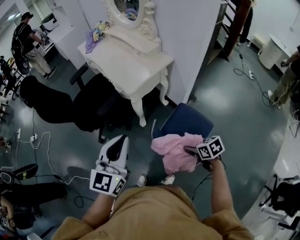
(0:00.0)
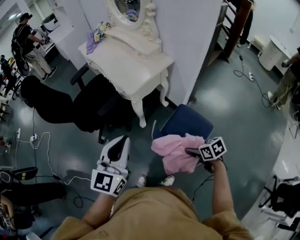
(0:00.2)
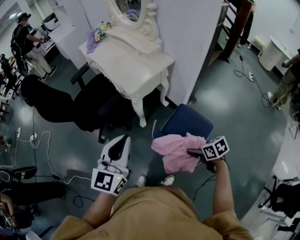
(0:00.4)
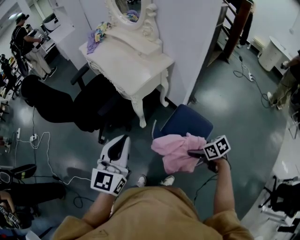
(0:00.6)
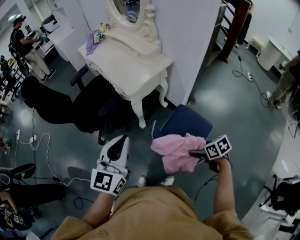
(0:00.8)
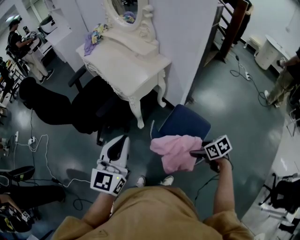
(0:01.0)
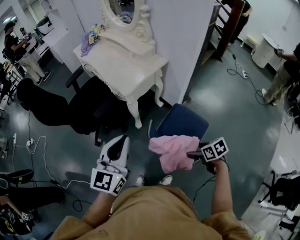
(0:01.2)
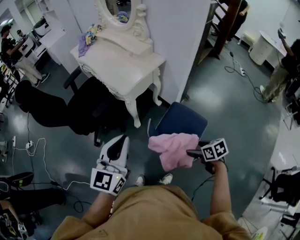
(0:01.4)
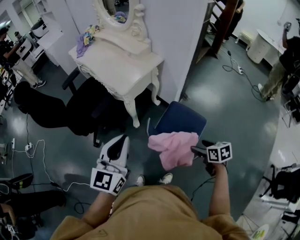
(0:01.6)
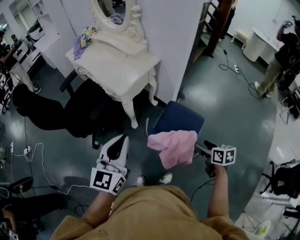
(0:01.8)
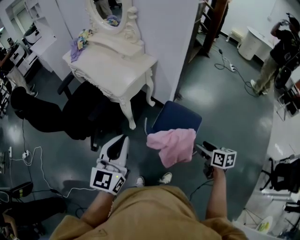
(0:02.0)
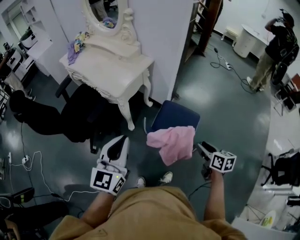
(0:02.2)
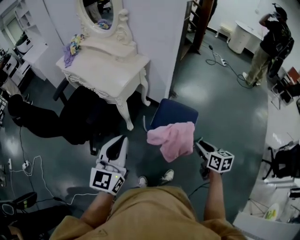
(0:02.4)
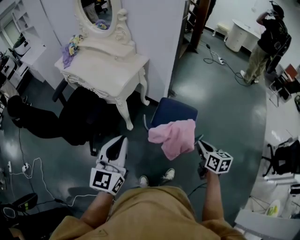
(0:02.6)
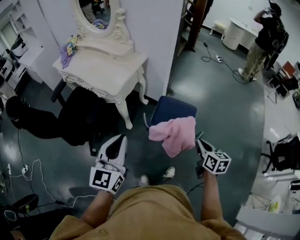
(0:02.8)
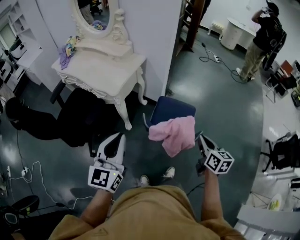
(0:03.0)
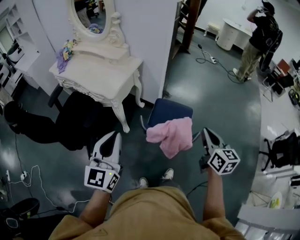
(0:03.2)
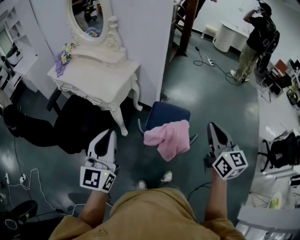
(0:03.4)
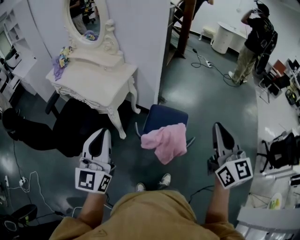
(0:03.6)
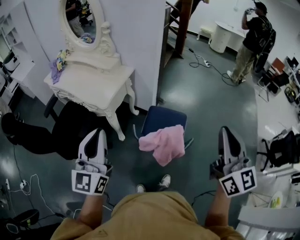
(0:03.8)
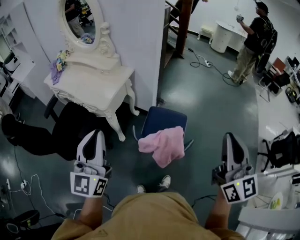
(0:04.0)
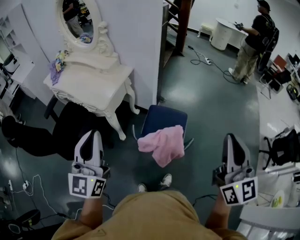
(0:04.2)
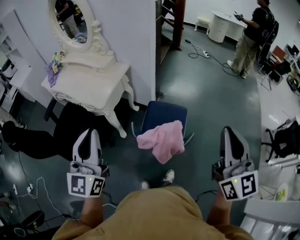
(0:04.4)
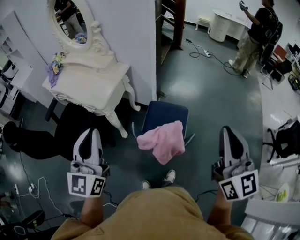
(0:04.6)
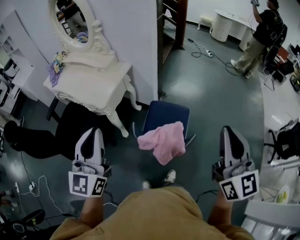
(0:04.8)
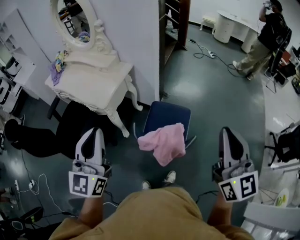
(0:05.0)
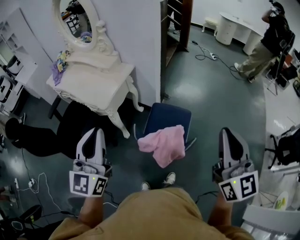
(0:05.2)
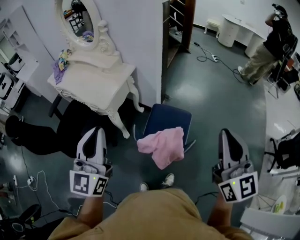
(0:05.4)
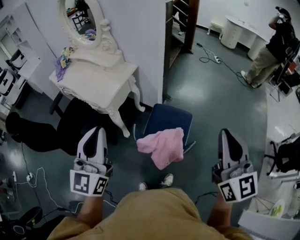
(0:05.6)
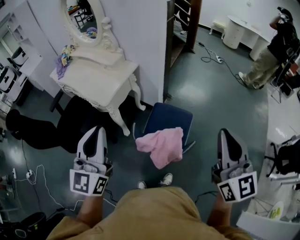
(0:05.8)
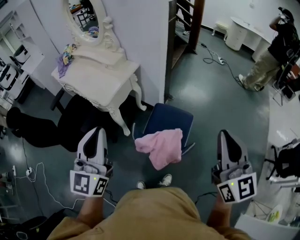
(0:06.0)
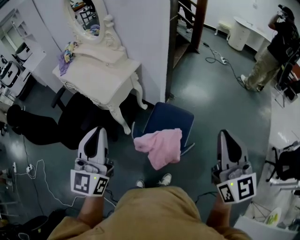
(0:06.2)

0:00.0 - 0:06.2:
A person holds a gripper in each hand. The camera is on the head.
0:00.0 - 0:01.6: The right gripper is displaced backward by about 5 cm, and turns by some 20 degrees.
0:01.6 - 0:03.2: The left gripper shifts by approximately 5 cm, while the right gripper goes roughly 15 cm upward, angles its fingers upward, by about 30 degrees, and closes up.
0:03.2 - 0:04.6: The right gripper moves upward, approximately 20 cm, and swivels some 30 degrees. Meanwhile the left gripper is displaced upward by approximately 10 cm.
0:04.6 - 0:06.2: The left gripper shifts about 5 cm to the right. The right gripper travels forward by some 5 cm.

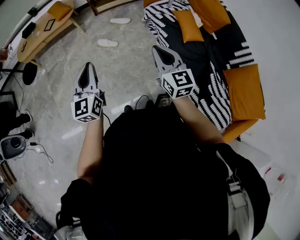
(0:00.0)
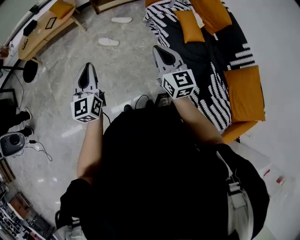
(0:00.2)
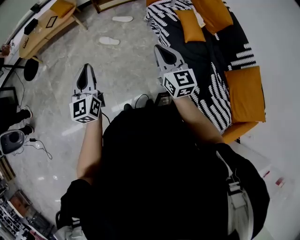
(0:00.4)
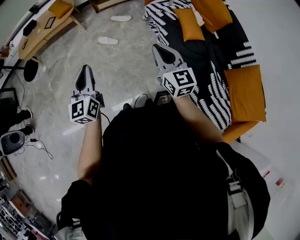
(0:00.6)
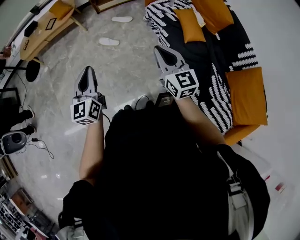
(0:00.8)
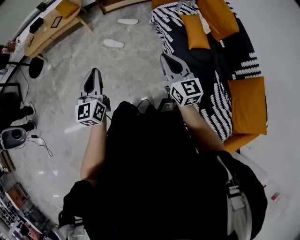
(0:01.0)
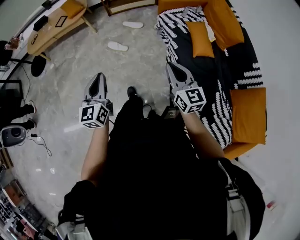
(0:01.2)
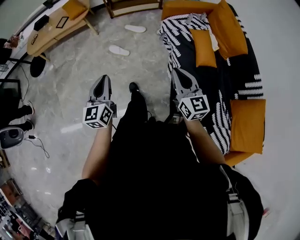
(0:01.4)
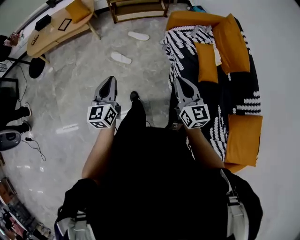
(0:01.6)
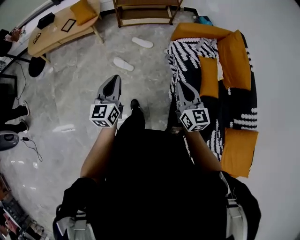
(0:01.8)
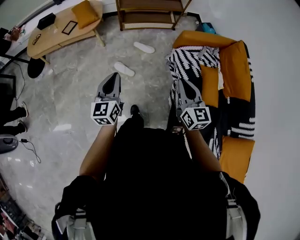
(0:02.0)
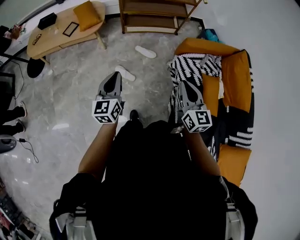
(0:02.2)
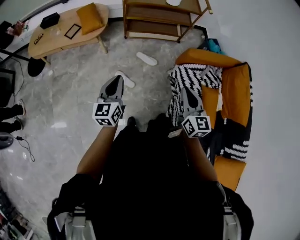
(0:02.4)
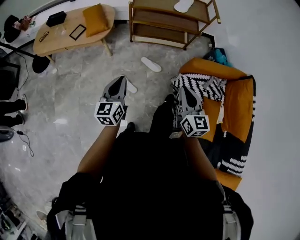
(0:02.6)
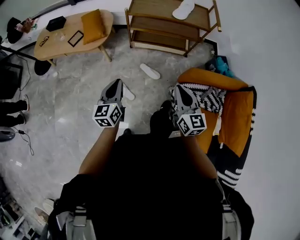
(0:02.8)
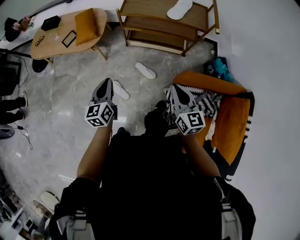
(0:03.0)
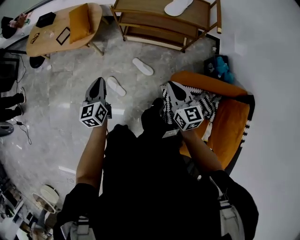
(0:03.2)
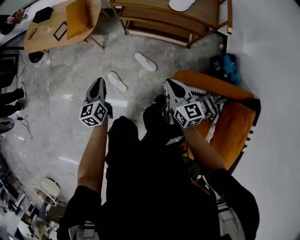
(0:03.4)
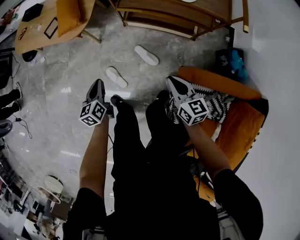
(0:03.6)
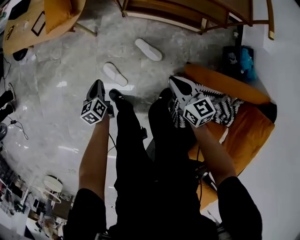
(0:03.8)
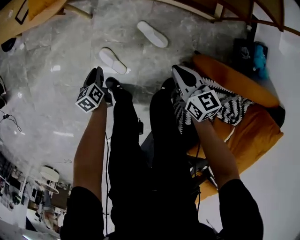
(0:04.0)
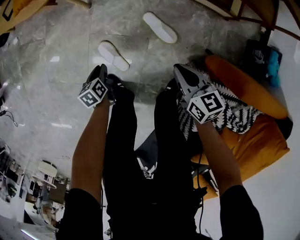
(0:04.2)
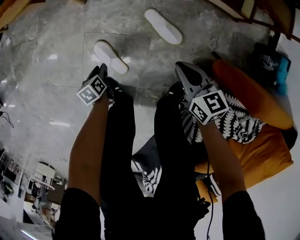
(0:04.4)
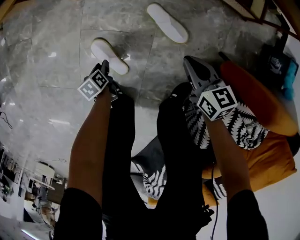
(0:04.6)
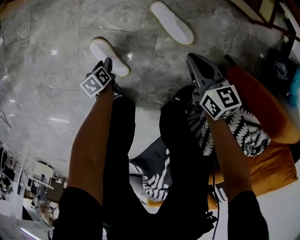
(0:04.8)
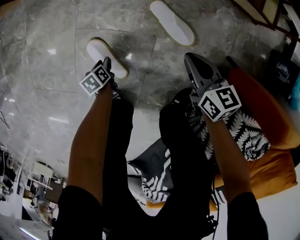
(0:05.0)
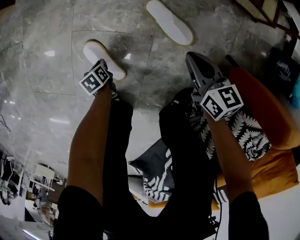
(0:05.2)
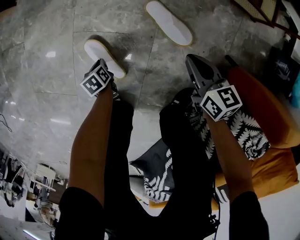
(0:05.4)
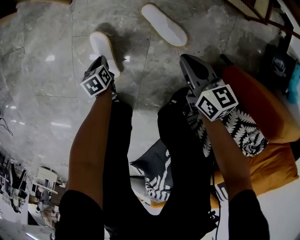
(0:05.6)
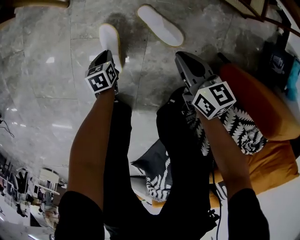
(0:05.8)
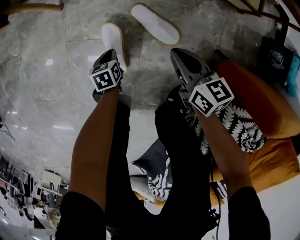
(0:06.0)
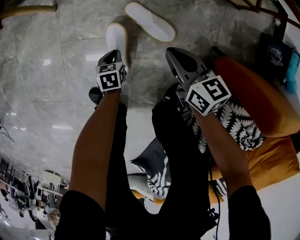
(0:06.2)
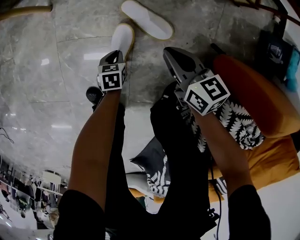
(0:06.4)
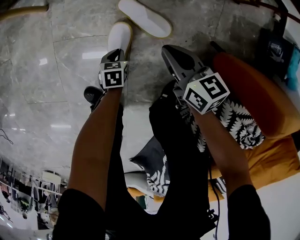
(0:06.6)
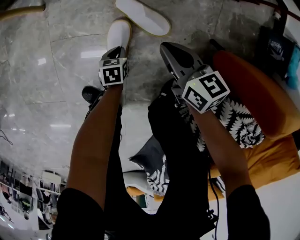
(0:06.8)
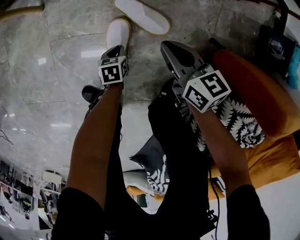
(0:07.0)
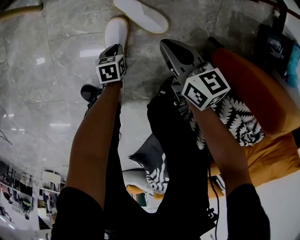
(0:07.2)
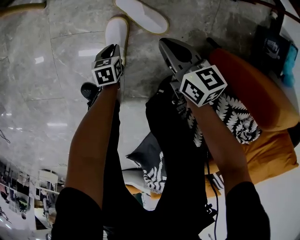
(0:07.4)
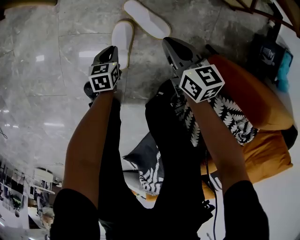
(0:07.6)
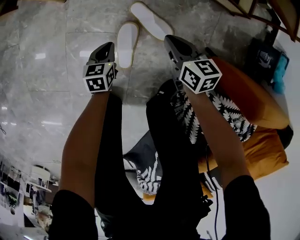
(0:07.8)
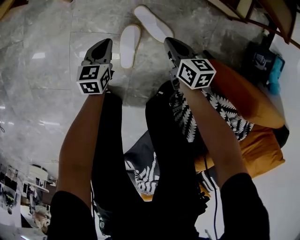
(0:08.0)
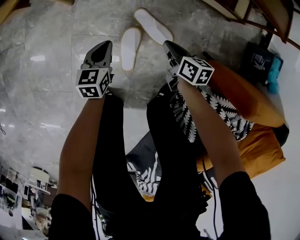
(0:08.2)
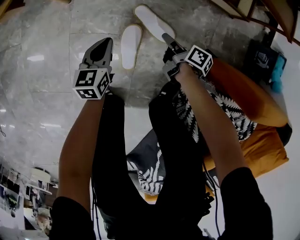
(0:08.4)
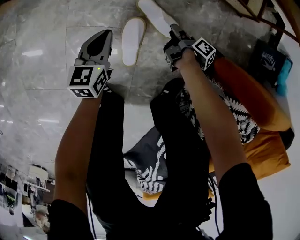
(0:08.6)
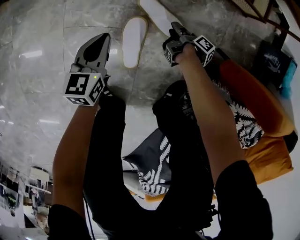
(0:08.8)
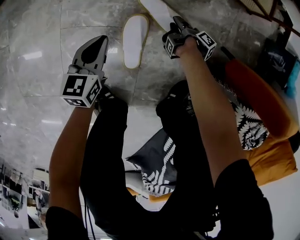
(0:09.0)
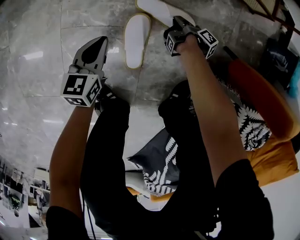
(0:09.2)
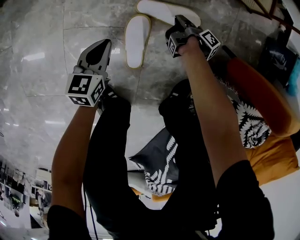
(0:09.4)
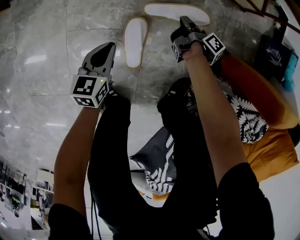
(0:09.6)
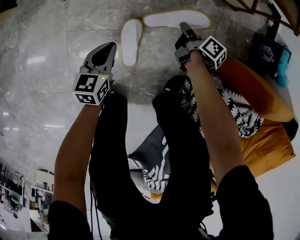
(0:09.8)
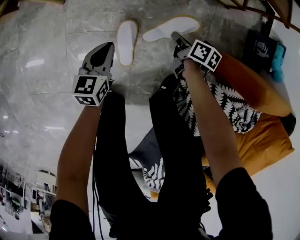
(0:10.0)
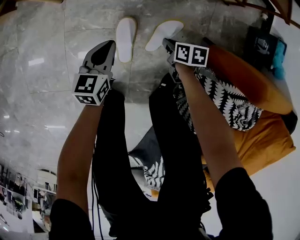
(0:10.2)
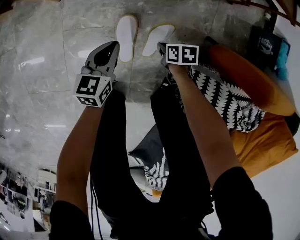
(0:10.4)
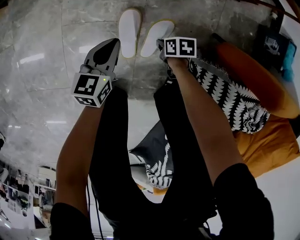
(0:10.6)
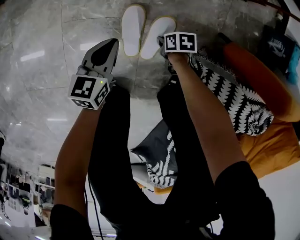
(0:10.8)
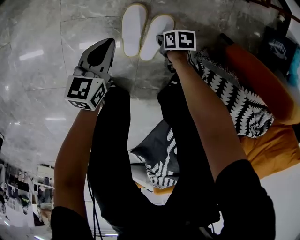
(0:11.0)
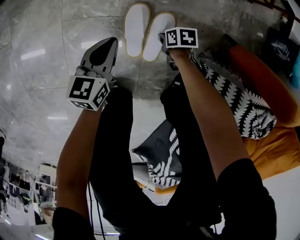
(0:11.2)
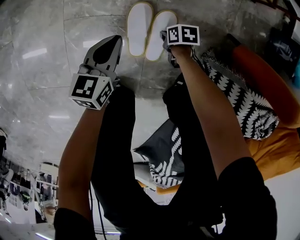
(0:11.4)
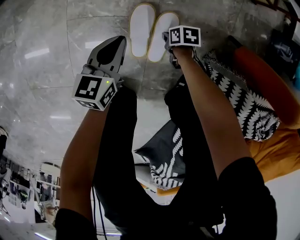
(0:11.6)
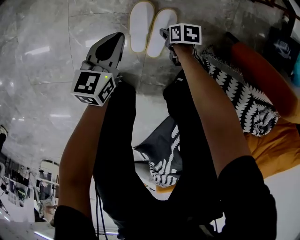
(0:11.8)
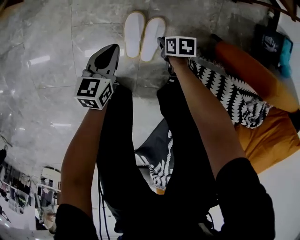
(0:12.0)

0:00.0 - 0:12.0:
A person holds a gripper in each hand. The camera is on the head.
0:00.0 - 0:01.6: The grippers both shift forward and downward by some 15 cm.
0:01.6 - 0:03.0: The pair of grippers is taken forward, about 50 cm. The left gripper turns by approximately 20 degrees.
0:03.0 - 0:04.4: Both grippers move downward, about 60 cm. The right gripper turns by about 40 degrees; the left gripper tilts its fingers about 50 degrees downward, and opens up.
0:04.4 - 0:06.0: The right gripper travels downward by about 10 cm. The left gripper shifts by approximately 15 cm, rotates approximately 20 degrees, and closes up.
0:07.6 - 0:09.0: The right gripper heads downward, covering approximately 25 cm, twists roughly 90 degrees clockwise, seen from behind, and opens up. The left gripper shifts about 10 cm upward, to the left and forward, and rotates some 30 degrees.
0:09.0 - 0:10.4: The left gripper heads upward, covering about 10 cm. The right gripper ends up about 15 cm from where it was, twists some 70 degrees counterclockwise, seen from behind, and closes.
0:10.4 - 0:12.0: The right gripper reaches about 10 cm downward, then returns.

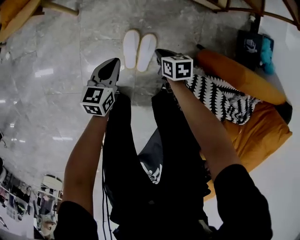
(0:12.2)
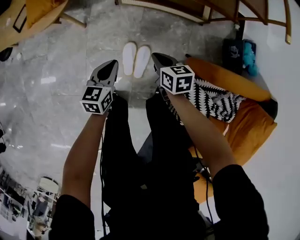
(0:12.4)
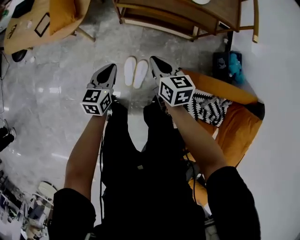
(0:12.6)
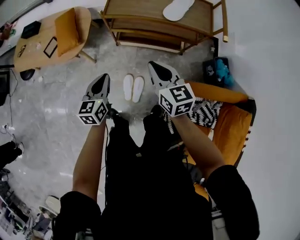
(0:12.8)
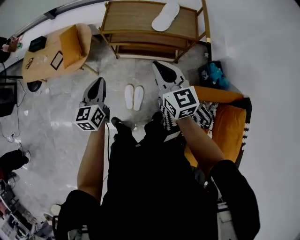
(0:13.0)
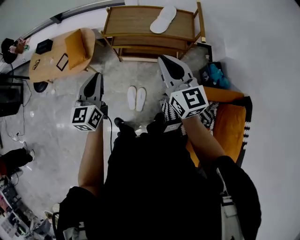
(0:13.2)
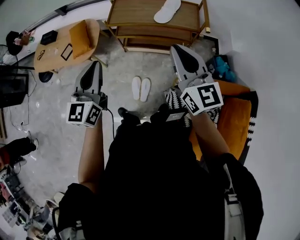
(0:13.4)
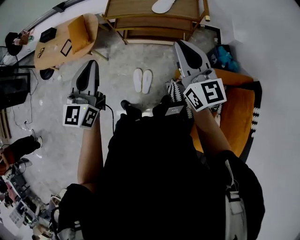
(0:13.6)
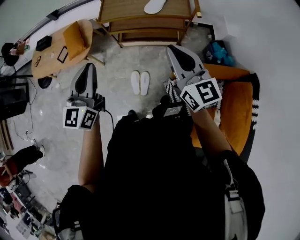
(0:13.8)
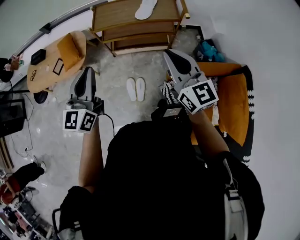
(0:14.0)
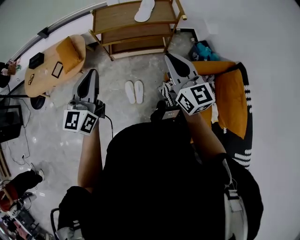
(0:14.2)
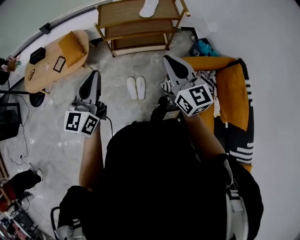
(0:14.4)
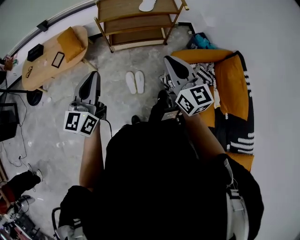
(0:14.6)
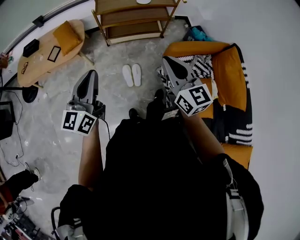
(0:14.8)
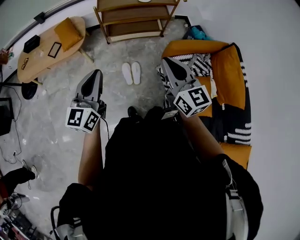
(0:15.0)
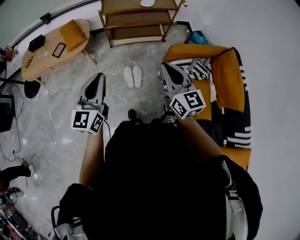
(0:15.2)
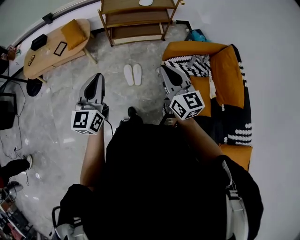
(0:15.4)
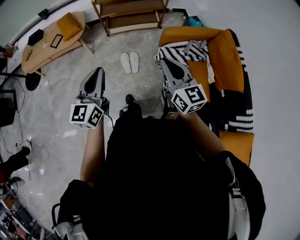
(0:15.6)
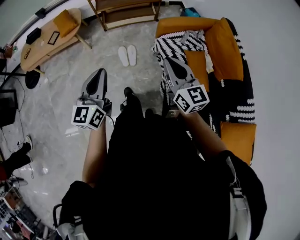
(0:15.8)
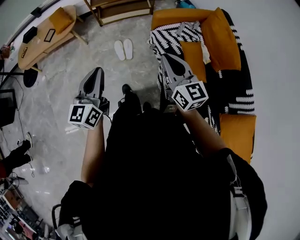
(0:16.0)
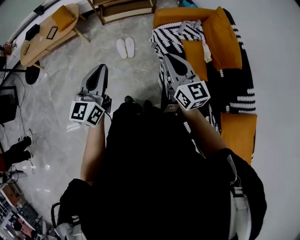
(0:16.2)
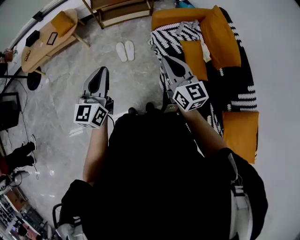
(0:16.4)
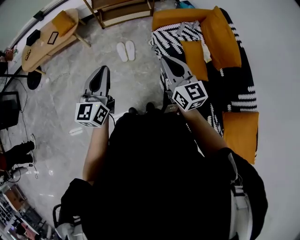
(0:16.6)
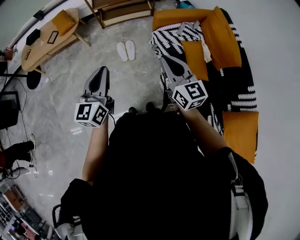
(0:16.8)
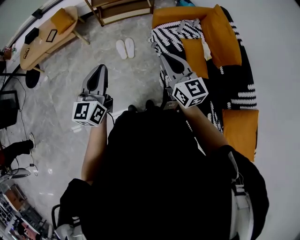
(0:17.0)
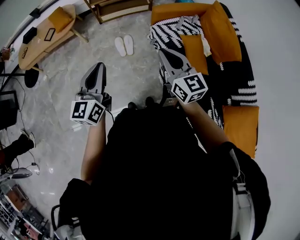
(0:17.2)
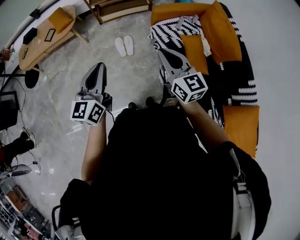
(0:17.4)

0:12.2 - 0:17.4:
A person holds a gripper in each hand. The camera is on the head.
0:12.2 - 0:14.0: The grippers both shift upward by about 70 cm. The left gripper points its fingers some 40 degrees further upward; the right gripper angles its fingers upward, by some 60 degrees.
0:14.0 - 0:15.6: Both grippers move backward, approximately 35 cm.
0:15.6 - 0:17.4: The two grippers go approximately 10 cm backward.
